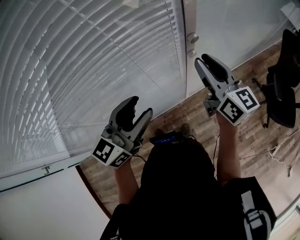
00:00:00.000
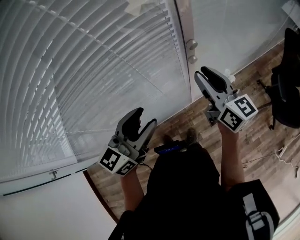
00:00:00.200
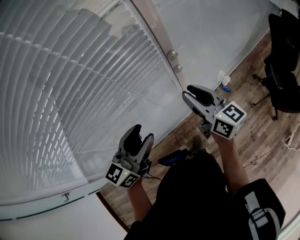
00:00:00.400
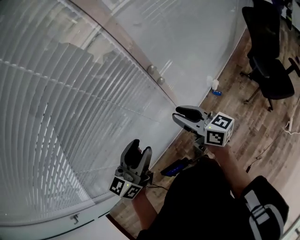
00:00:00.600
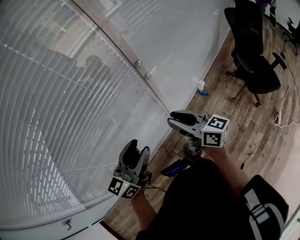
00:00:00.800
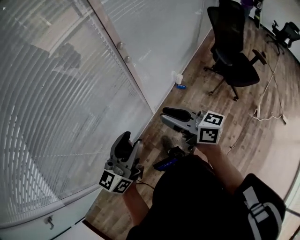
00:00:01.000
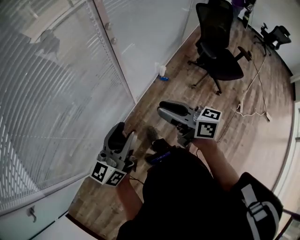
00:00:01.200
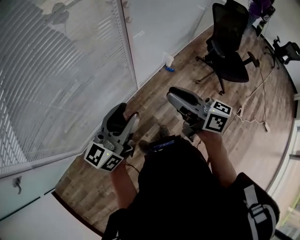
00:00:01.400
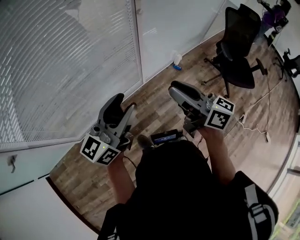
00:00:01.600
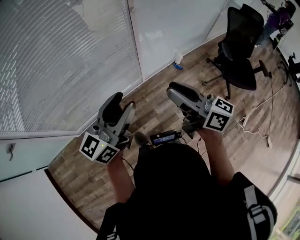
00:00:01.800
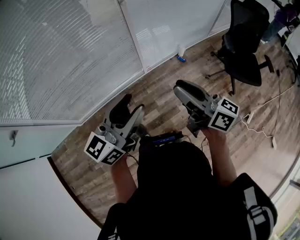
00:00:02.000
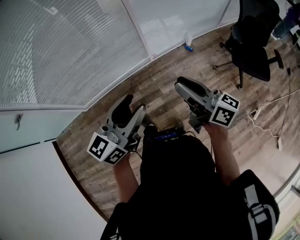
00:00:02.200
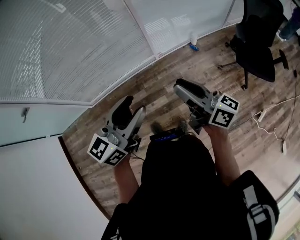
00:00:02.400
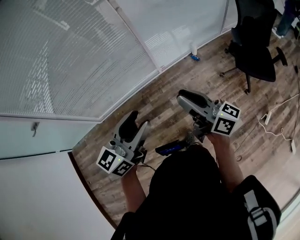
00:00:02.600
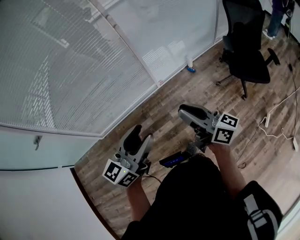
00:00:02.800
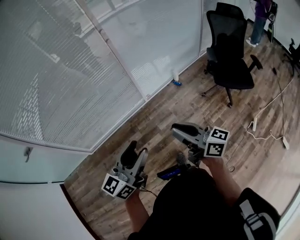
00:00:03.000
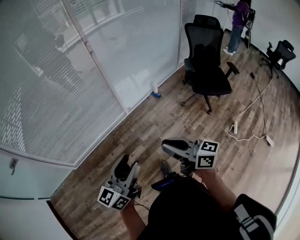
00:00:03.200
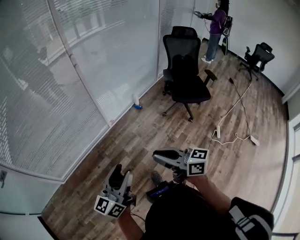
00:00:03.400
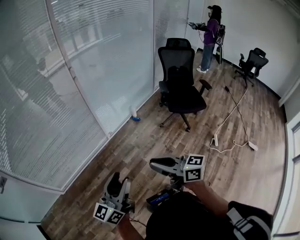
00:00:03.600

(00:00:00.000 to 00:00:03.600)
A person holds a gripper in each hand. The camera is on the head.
00:00:00.000 - 00:00:01.800: The two grippers go some 30 cm backward. The right gripper rotates roughly 20 degrees.
00:00:01.800 - 00:00:03.600: The grippers both shift backward and to the right by approximately 35 cm.

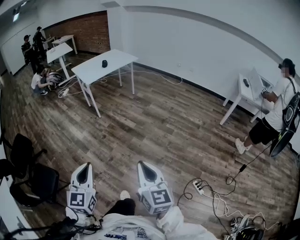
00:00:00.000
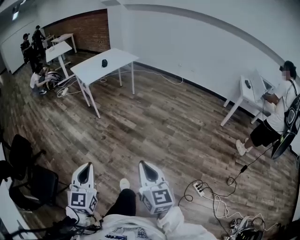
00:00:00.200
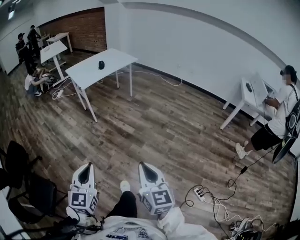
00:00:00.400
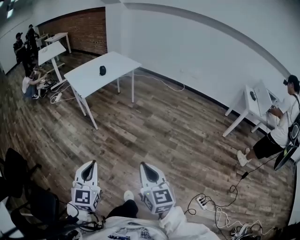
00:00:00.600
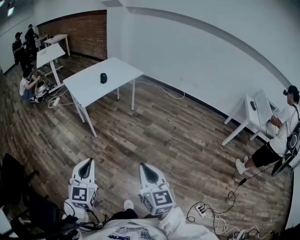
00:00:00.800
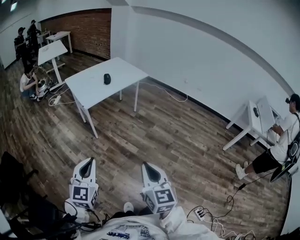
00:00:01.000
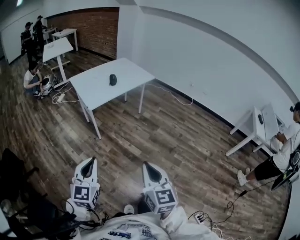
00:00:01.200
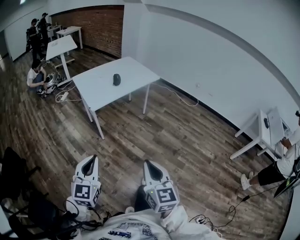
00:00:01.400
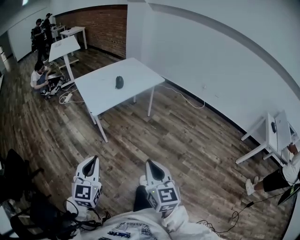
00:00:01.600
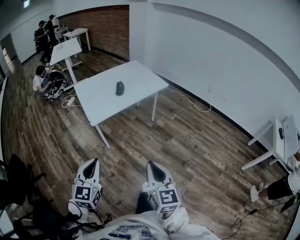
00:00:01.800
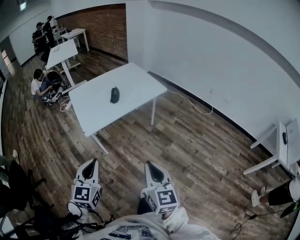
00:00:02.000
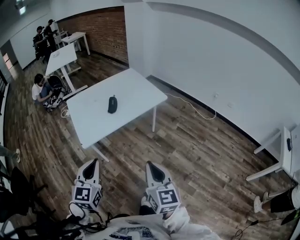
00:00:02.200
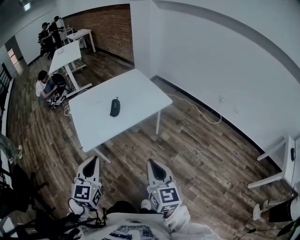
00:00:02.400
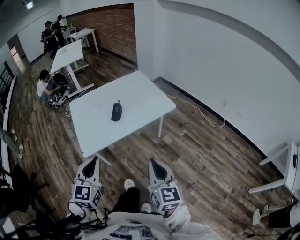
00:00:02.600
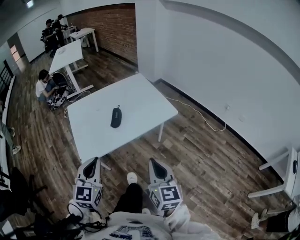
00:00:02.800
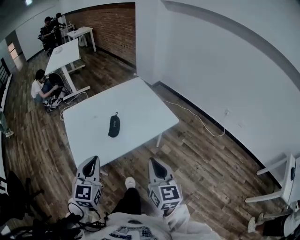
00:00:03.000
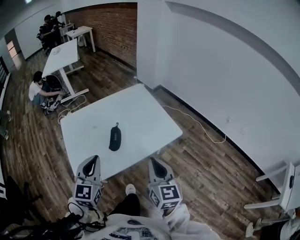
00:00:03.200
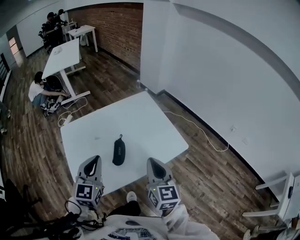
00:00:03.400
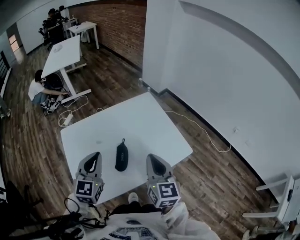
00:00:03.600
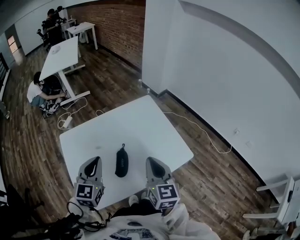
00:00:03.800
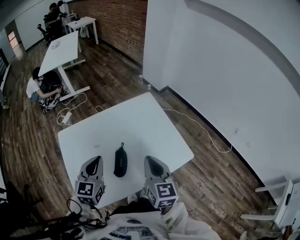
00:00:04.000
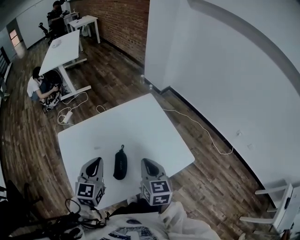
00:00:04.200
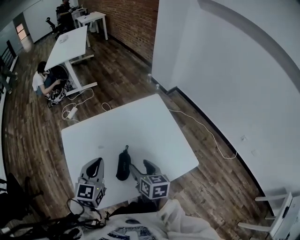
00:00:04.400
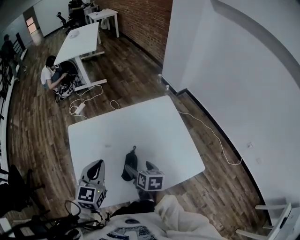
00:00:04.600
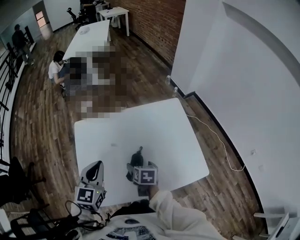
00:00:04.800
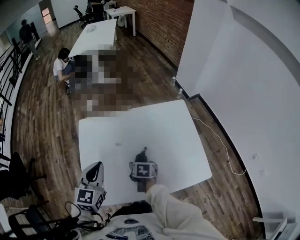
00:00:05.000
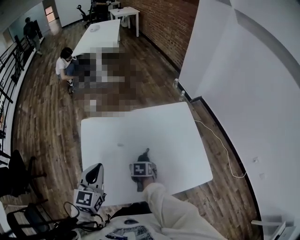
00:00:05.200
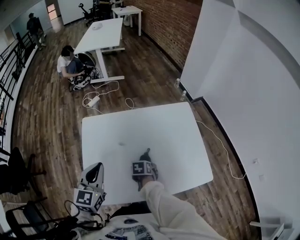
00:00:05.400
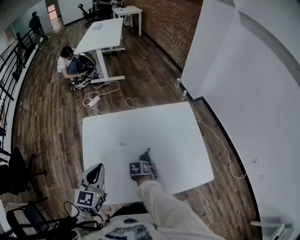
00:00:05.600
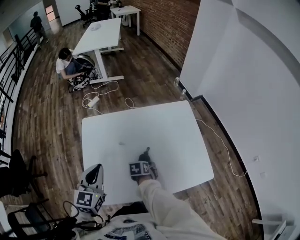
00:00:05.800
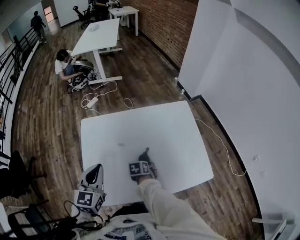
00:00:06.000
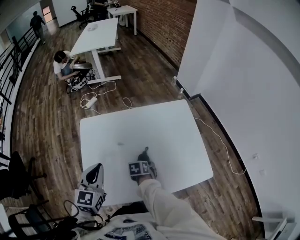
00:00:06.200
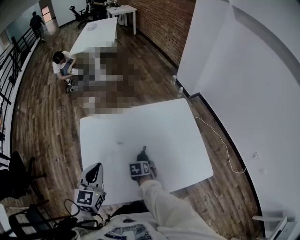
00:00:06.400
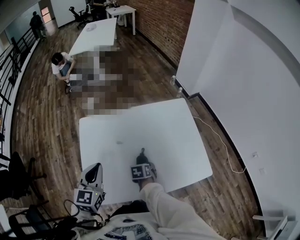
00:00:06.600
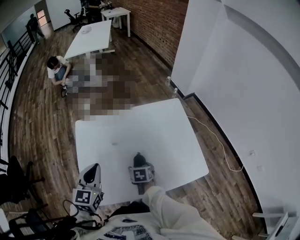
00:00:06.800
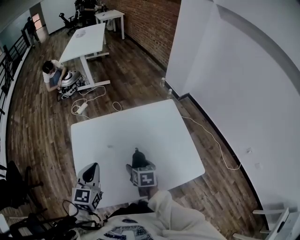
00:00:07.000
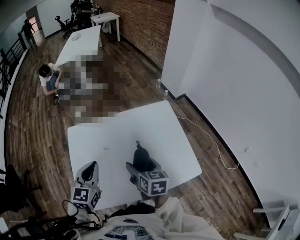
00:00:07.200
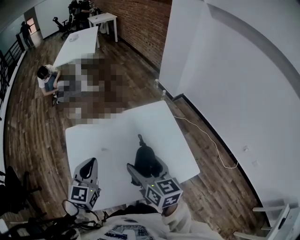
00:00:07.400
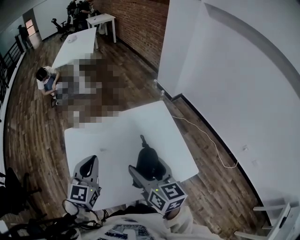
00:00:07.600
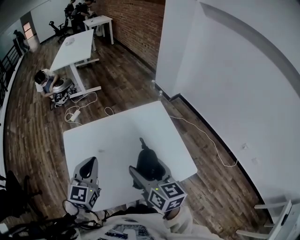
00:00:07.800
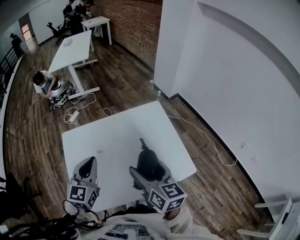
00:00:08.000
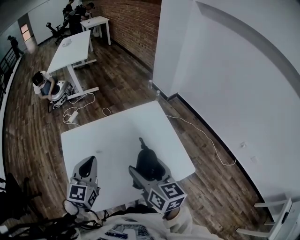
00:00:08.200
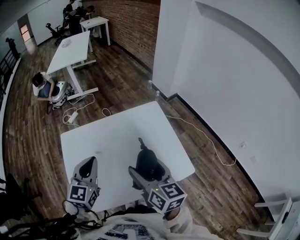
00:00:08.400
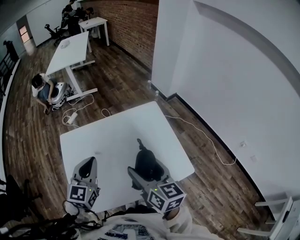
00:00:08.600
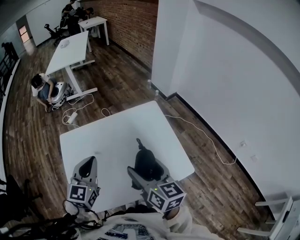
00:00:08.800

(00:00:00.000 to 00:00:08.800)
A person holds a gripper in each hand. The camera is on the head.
00:00:00.000 - 00:00:01.400: The two grippers travel together, forward, some 50 cm.
00:00:01.400 - 00:00:03.000: The pair of grippers is taken forward, roughly 60 cm.
00:00:03.000 - 00:00:04.400: Both grippers move forward, about 30 cm. The right gripper turns by some 30 degrees, and opens its fingers.
00:00:04.400 - 00:00:05.800: The right gripper moves downward and to the left, about 25 cm, tips its fingers downward by roughly 40 degrees, and opens its fingers; the left gripper moves to the left, some 10 cm.
00:00:05.800 - 00:00:07.400: The left gripper travels to the right by about 10 cm, while the right gripper is displaced upward by about 35 cm, and tilts its fingers approximately 60 degrees upward.
00:00:07.400 - 00:00:08.800: The left gripper changes place by roughly 5 cm.

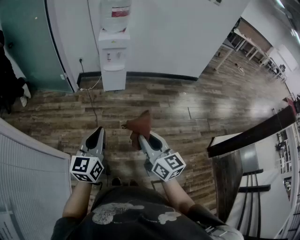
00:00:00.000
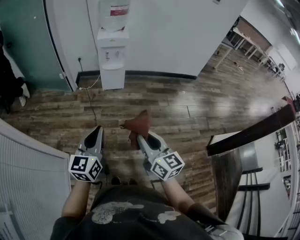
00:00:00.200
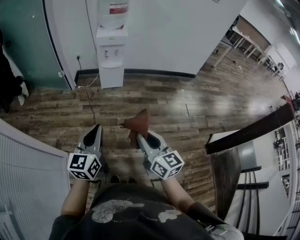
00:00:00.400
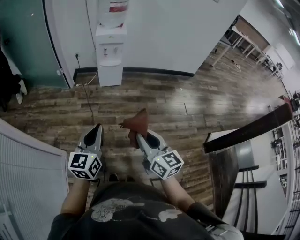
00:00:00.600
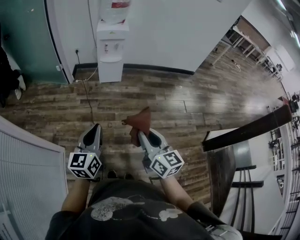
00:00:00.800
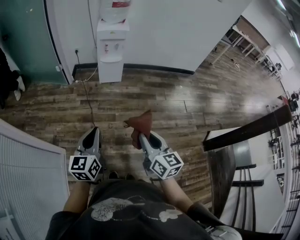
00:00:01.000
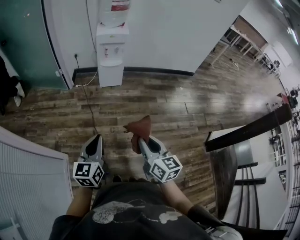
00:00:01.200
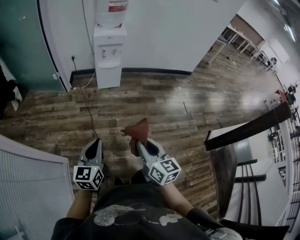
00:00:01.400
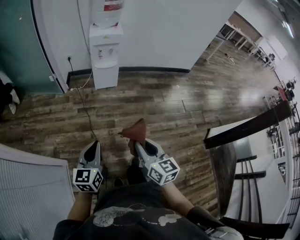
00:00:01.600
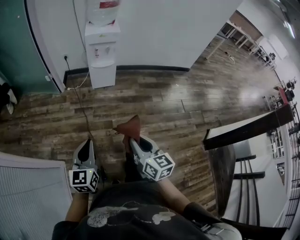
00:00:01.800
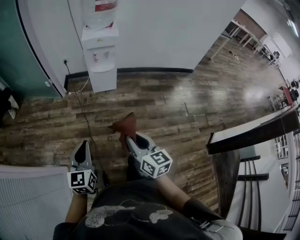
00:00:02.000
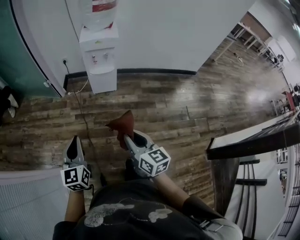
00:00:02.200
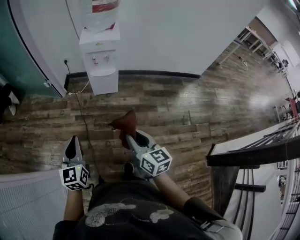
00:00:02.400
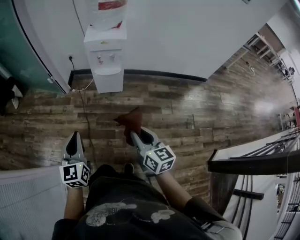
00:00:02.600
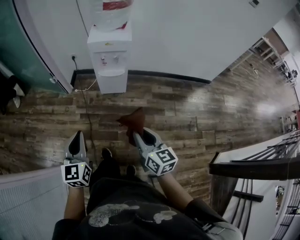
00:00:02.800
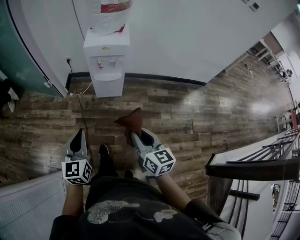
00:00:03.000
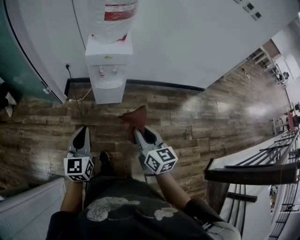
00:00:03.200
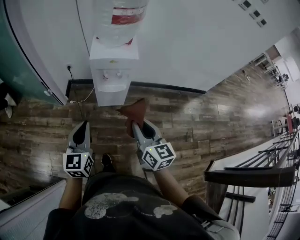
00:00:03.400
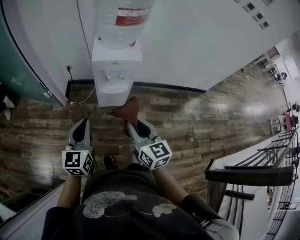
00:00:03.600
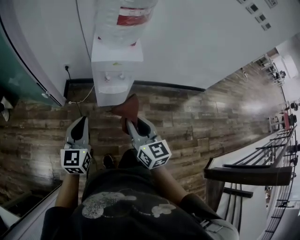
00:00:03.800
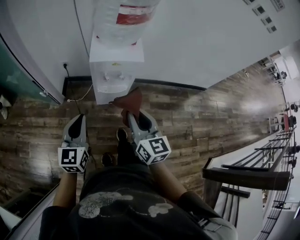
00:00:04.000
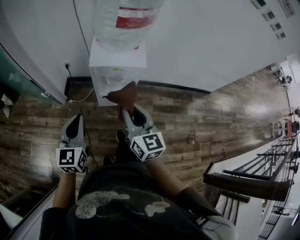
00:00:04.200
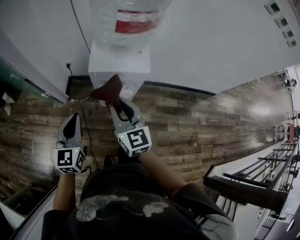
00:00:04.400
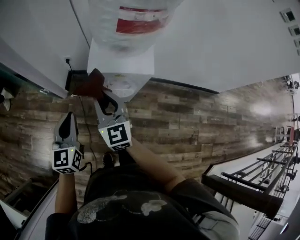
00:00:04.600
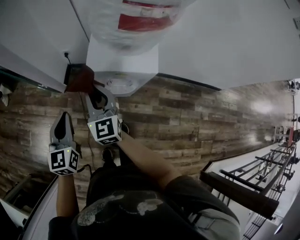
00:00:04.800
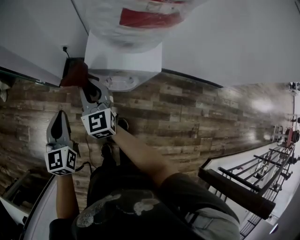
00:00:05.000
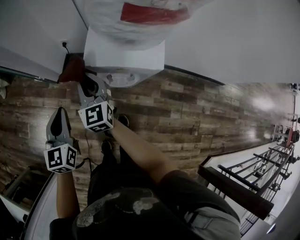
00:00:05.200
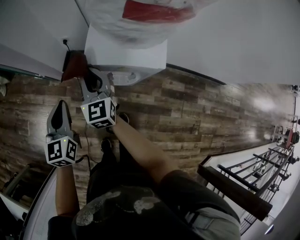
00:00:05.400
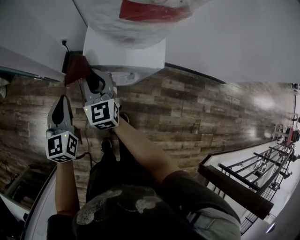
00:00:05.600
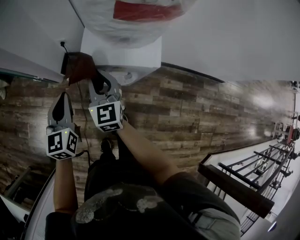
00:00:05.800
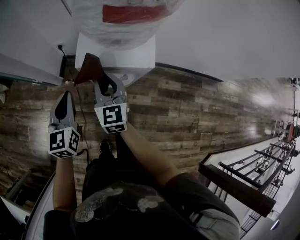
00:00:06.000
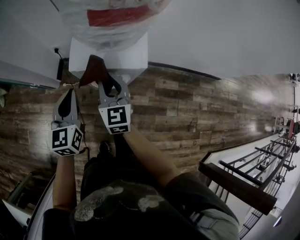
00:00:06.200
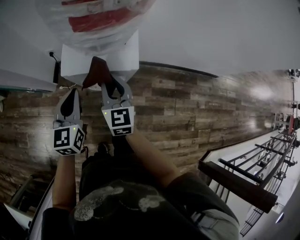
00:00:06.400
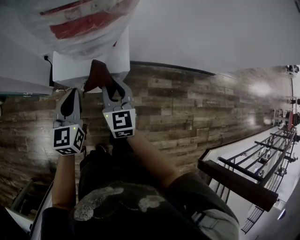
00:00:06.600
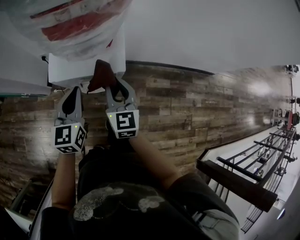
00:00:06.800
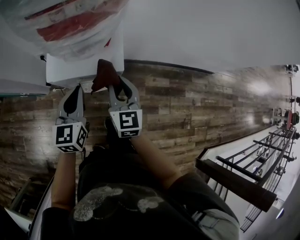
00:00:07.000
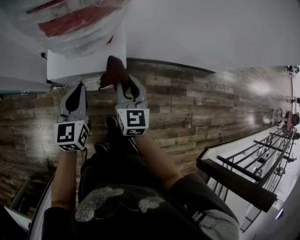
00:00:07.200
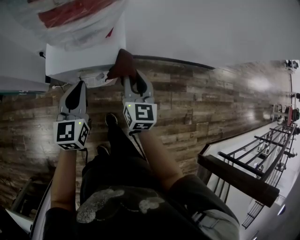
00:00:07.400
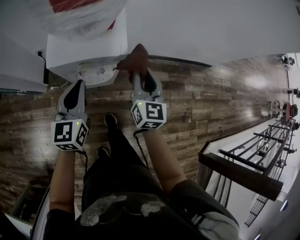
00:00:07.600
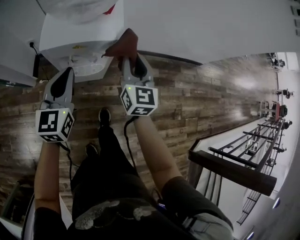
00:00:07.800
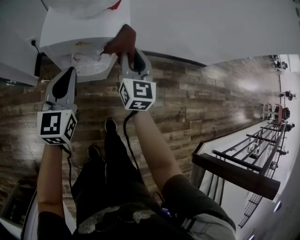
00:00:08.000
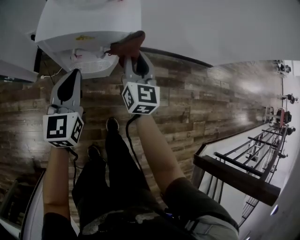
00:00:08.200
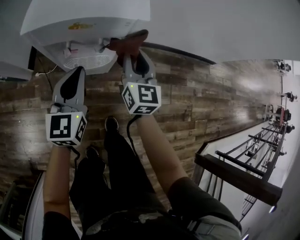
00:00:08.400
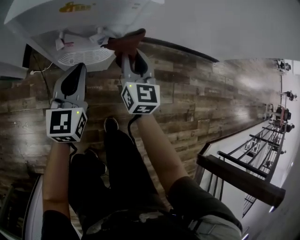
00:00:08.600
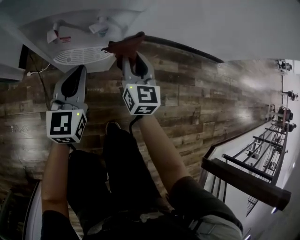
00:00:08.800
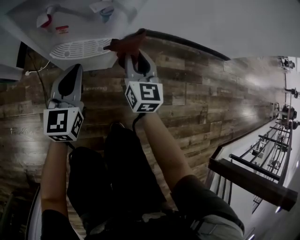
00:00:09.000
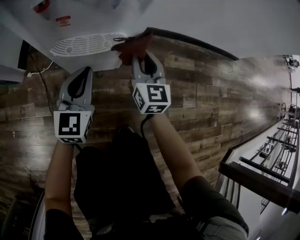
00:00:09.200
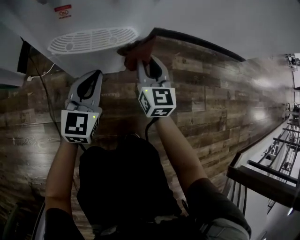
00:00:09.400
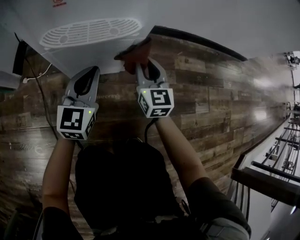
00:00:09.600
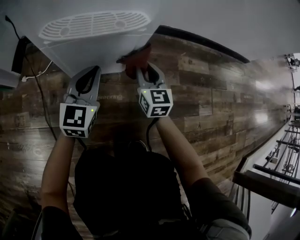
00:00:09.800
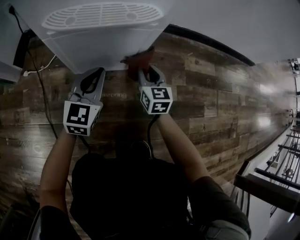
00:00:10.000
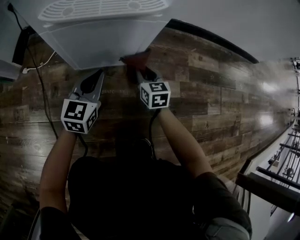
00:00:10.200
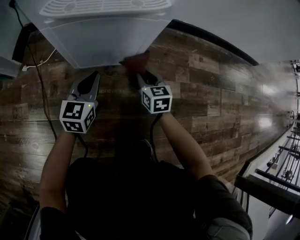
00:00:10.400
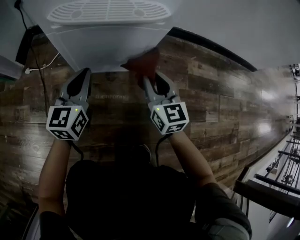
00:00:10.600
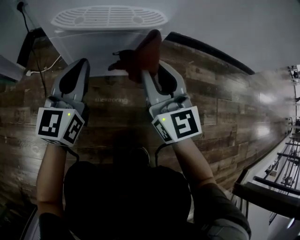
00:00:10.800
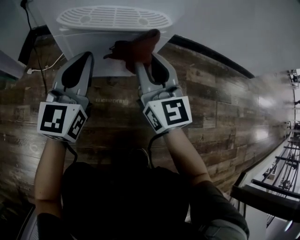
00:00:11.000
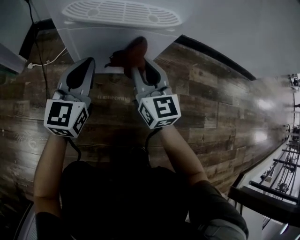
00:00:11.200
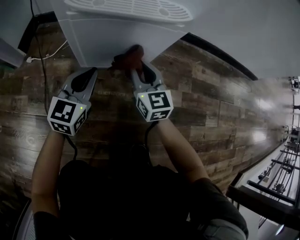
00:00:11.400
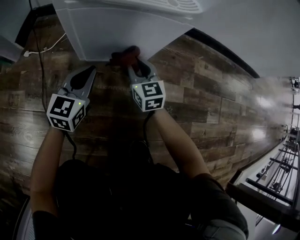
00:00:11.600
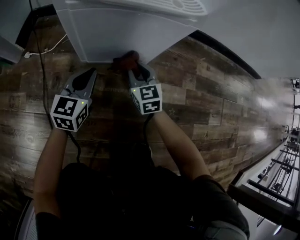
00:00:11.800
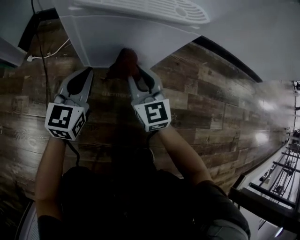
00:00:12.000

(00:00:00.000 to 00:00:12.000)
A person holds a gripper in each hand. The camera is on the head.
00:00:00.000 - 00:00:01.600: The right gripper shifts about 5 cm downward, while the left gripper is displaced downward and to the left by about 10 cm.
00:00:01.600 - 00:00:03.000: The two grippers go about 35 cm forward.
00:00:03.000 - 00:00:04.400: The grippers both shift forward by about 35 cm.
00:00:04.400 - 00:00:06.000: The left gripper goes about 10 cm forward. Meanwhile the right gripper travels forward and downward by roughly 15 cm.
00:00:06.000 - 00:00:07.600: The right gripper travels to the right by about 25 cm, and changes its angle by some 20 degrees. The left gripper moves to the right, some 15 cm.
00:00:07.600 - 00:00:09.000: Both grippers move downward, approximately 35 cm.
00:00:09.000 - 00:00:10.400: Both grippers travel together downward, about 30 cm. The right gripper rotates some 20 degrees.
00:00:10.400 - 00:00:12.000: The right gripper moves up and down over approximately 25 cm, changing direction 2 times, and turns by about 30 degrees. Meanwhile the left gripper swings up and down, roughly 20 cm each way, with 2 reversals.
